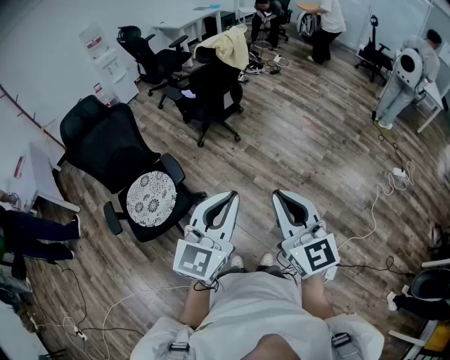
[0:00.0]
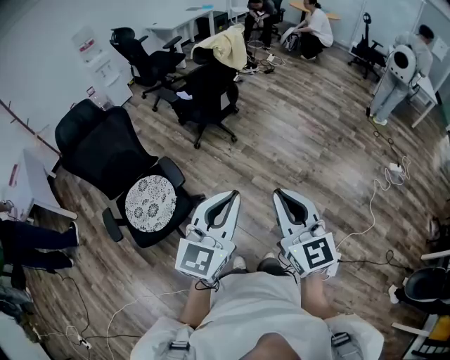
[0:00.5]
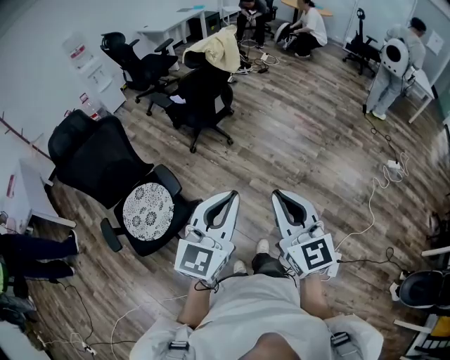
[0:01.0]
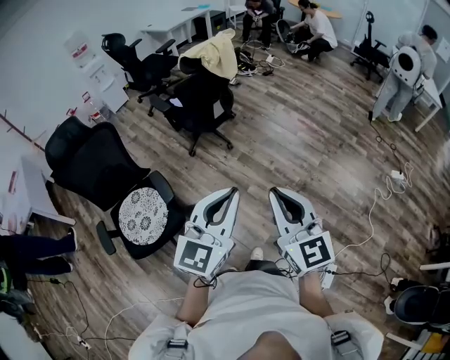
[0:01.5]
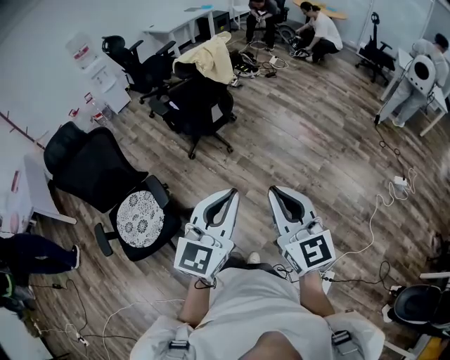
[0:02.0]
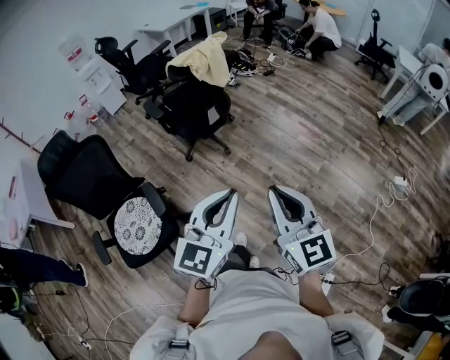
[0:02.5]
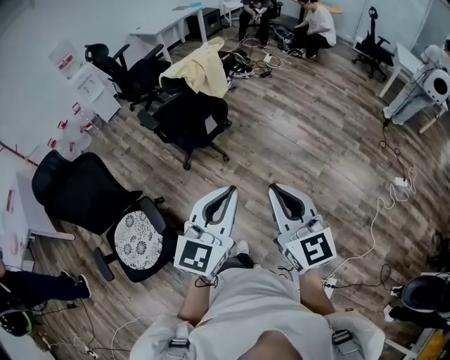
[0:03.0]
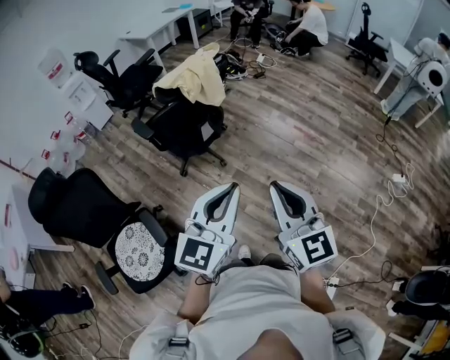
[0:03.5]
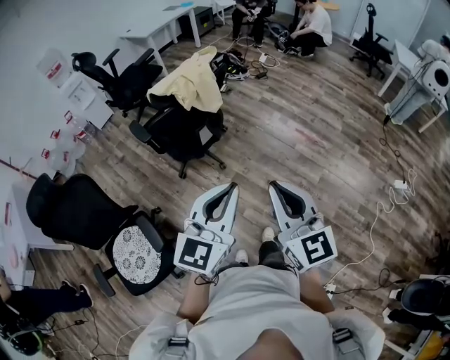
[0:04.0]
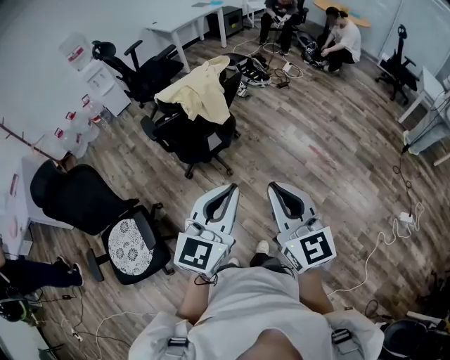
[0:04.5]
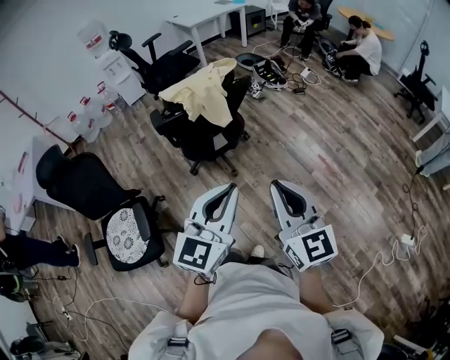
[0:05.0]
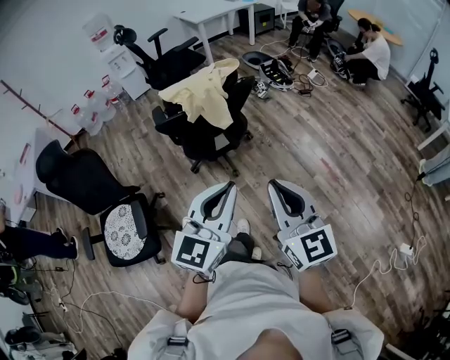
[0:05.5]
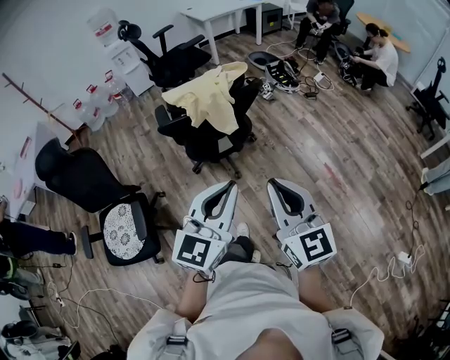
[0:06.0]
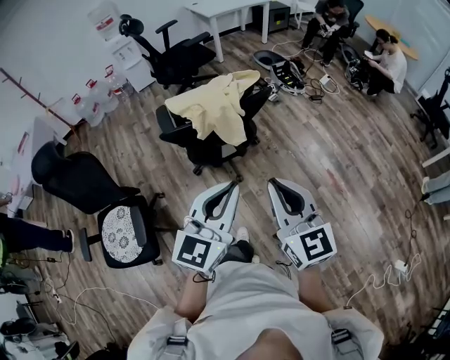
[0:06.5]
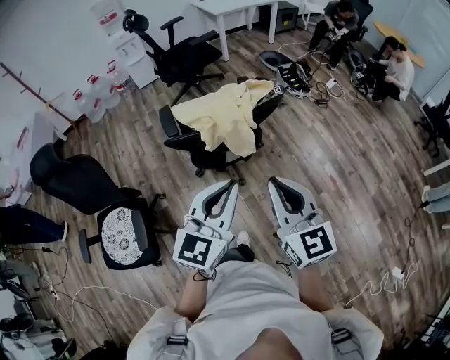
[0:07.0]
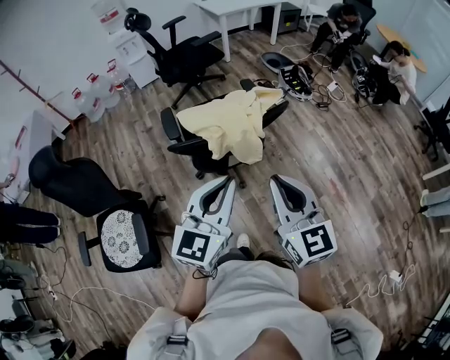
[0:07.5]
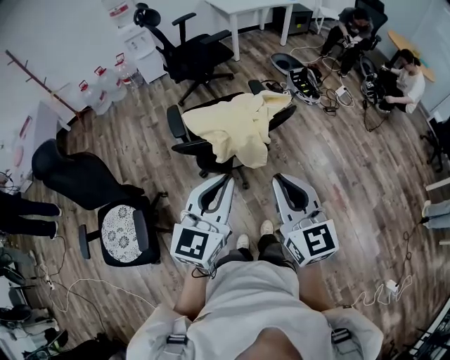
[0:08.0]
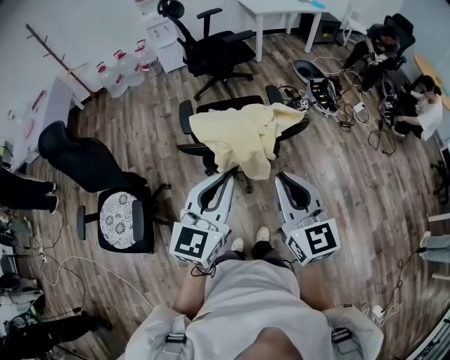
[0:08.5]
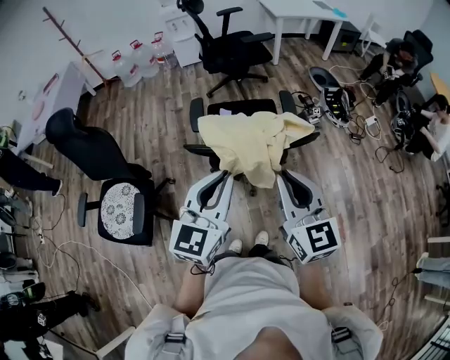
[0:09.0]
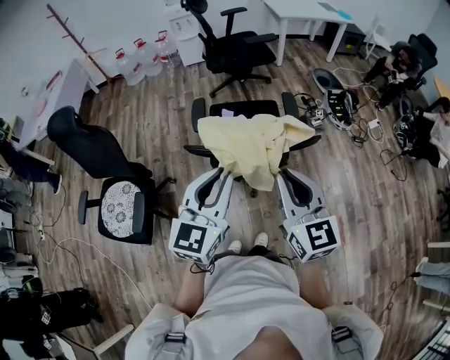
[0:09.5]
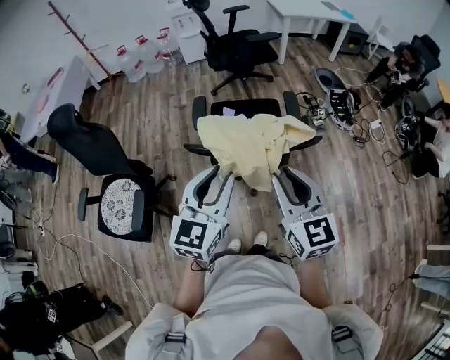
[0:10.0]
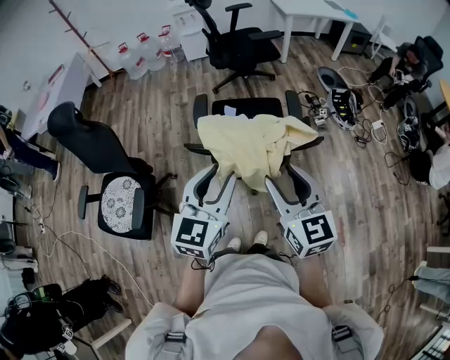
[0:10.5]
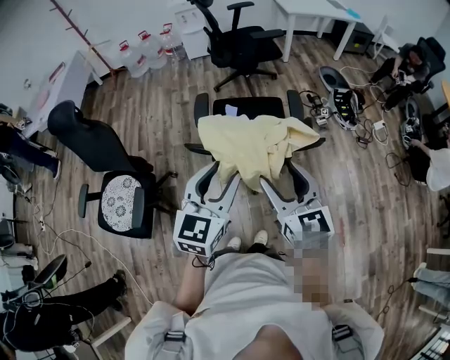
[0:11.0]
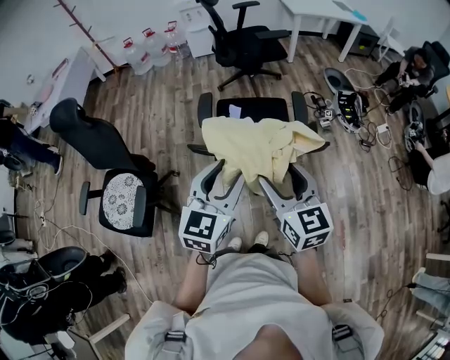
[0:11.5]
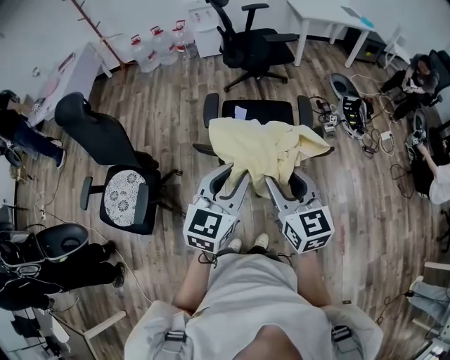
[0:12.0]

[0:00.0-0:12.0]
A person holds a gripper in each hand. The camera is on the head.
0.0 to 2.0 s: The left gripper is displaced forward and to the right by some 20 cm; the right gripper travels forward by some 15 cm.
2.0 to 4.0 s: Both grippers move forward, roughly 25 cm.
4.0 to 6.0 s: Both grippers move forward and to the right, approximately 15 cm. The left gripper swivels approximately 20 degrees; the right gripper rotates roughly 20 degrees.
6.0 to 8.0 s: The right gripper shifts roughly 20 cm forward. Meanwhile the left gripper goes some 20 cm forward and to the left.
8.0 to 10.0 s: Both grippers travel together forward, approximately 10 cm. The left gripper opens.
10.0 to 12.0 s: The right gripper moves approximately 5 cm, and opens, then closes once more.

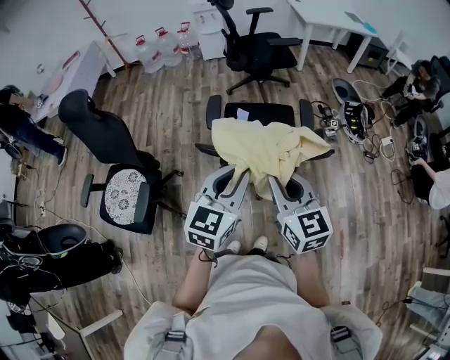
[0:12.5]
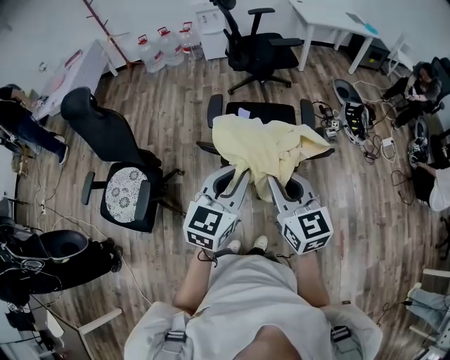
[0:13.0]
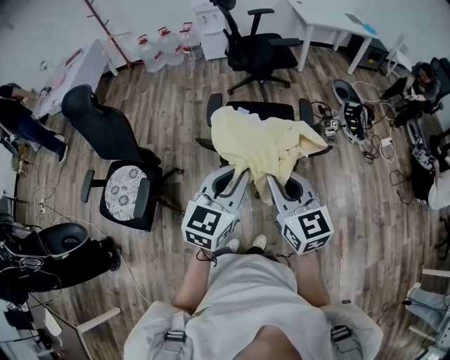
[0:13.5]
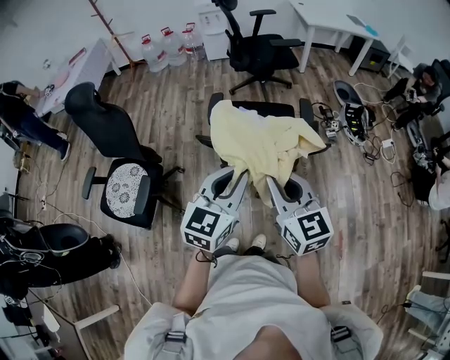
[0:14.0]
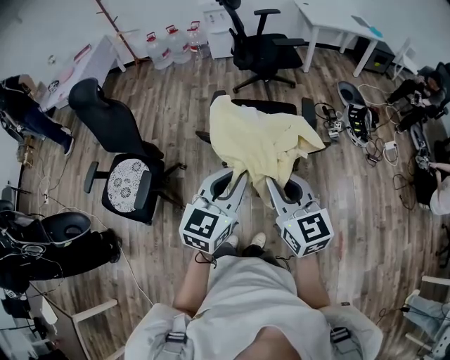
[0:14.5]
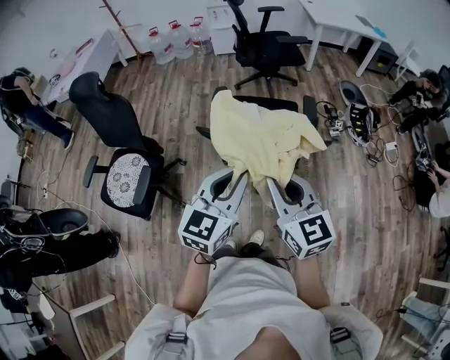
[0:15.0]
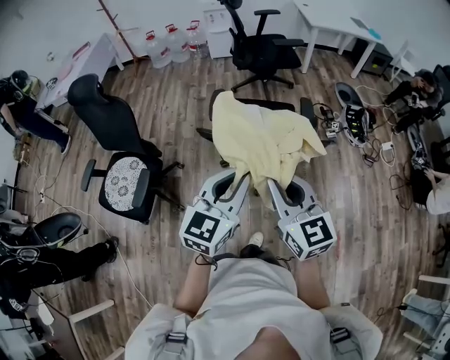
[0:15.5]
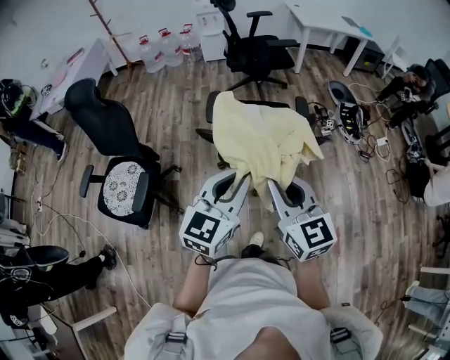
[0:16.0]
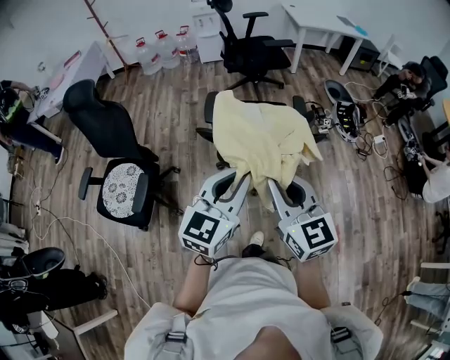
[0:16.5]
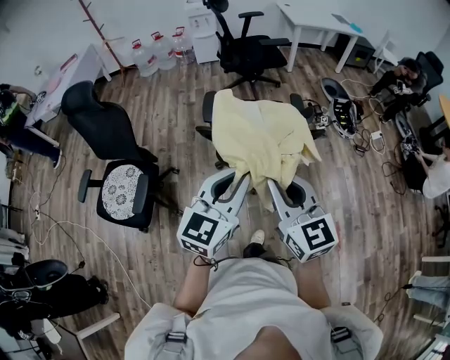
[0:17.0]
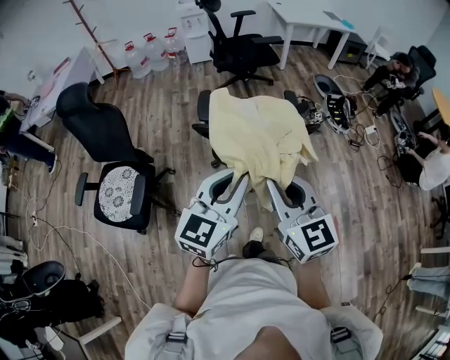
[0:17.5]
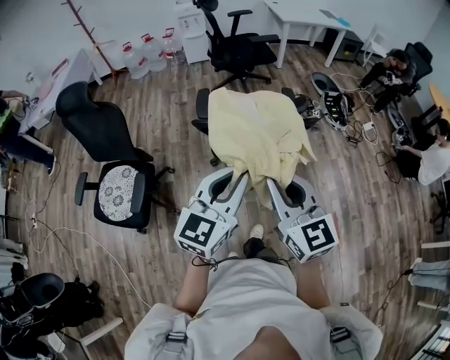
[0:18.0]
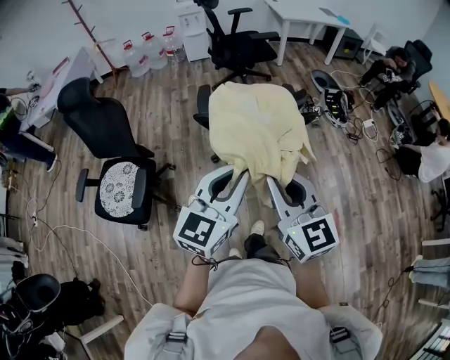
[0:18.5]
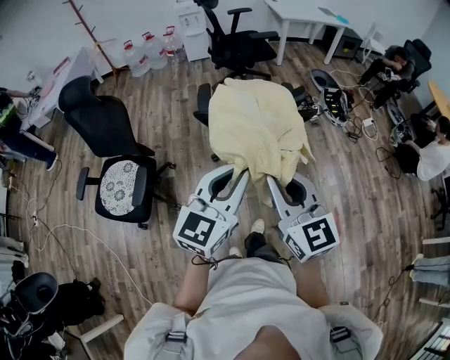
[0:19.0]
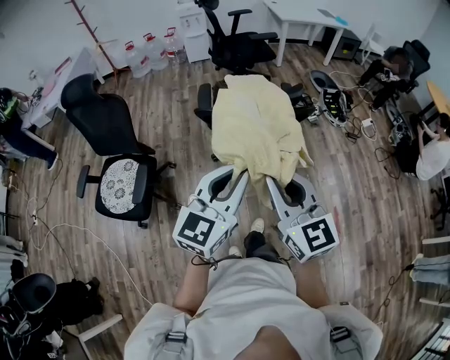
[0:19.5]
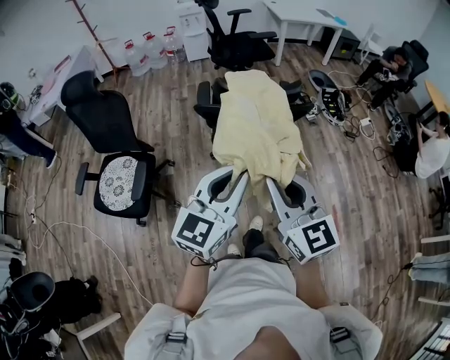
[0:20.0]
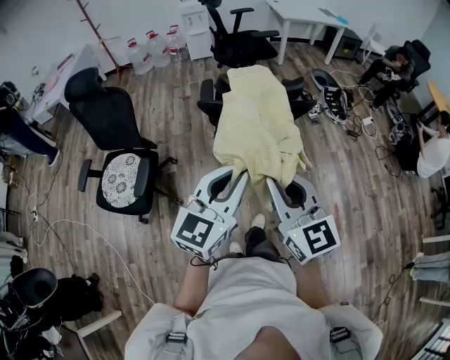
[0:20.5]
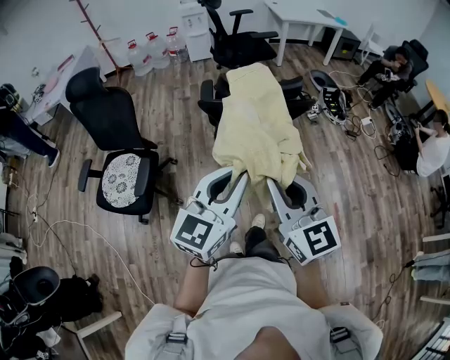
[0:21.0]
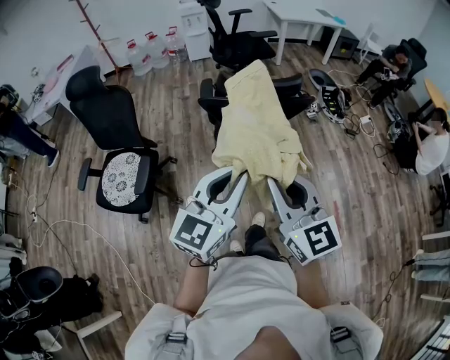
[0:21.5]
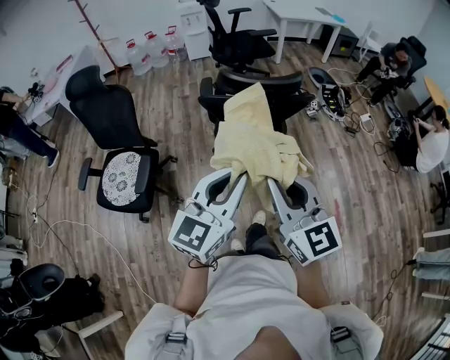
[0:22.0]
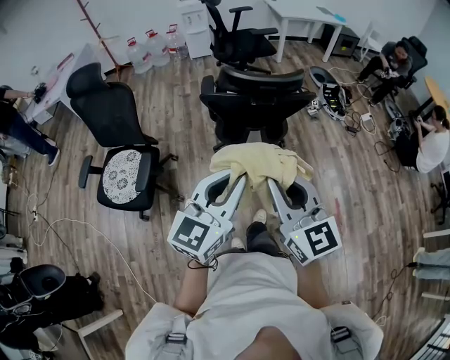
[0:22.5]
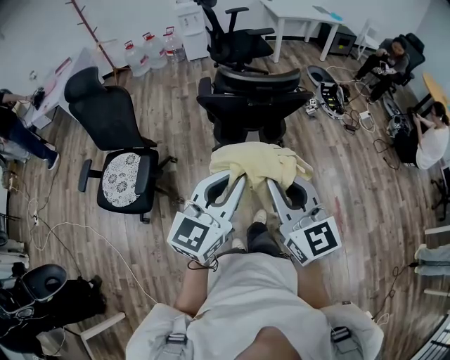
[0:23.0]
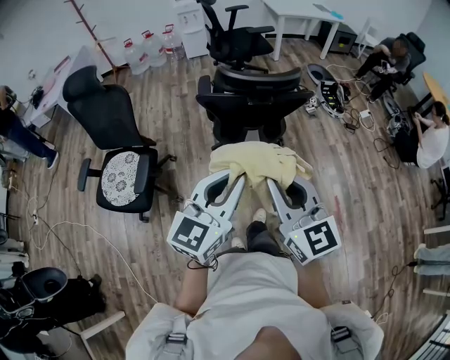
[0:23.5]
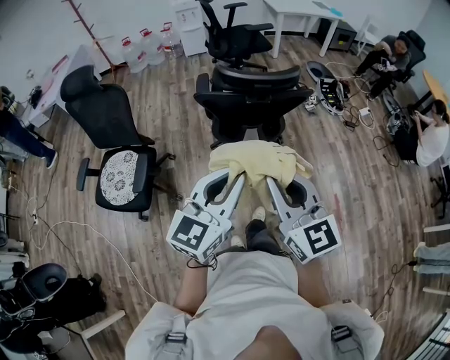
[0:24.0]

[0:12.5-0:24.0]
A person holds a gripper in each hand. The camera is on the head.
12.5 to 14.5 s: The grippers both shift backward by about 5 cm.
14.5 to 16.5 s: The right gripper ends up approximately 5 cm from where it was. Meanwhile the left gripper moves approximately 5 cm.
16.5 to 18.5 s: Both grippers travel together backward, approximately 5 cm.
18.5 to 20.0 s: The grippers both shift backward by approximately 5 cm.
20.0 to 22.0 s: Both grippers move backward, roughly 5 cm.
22.0 to 24.0 s: The grippers move only a little.

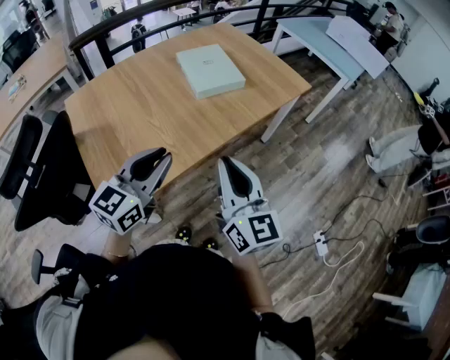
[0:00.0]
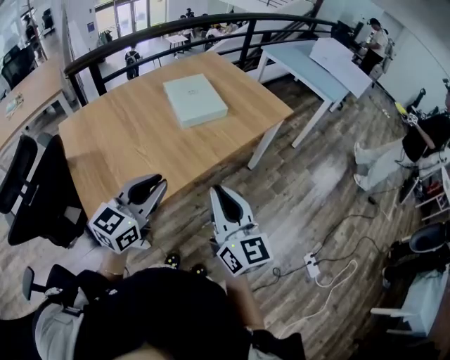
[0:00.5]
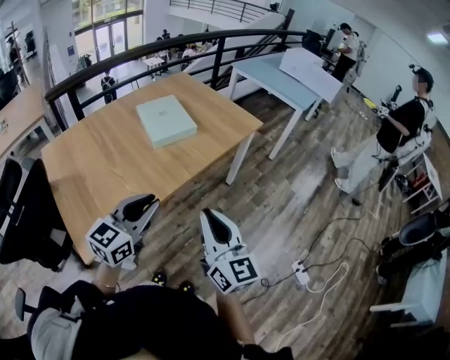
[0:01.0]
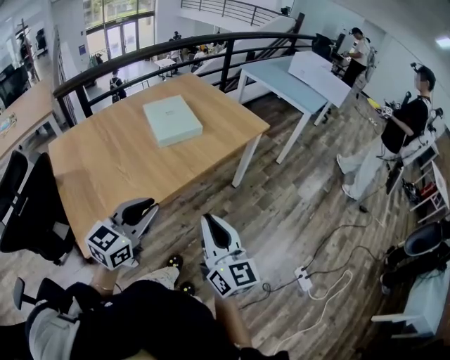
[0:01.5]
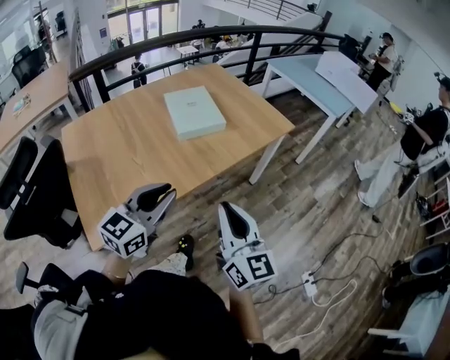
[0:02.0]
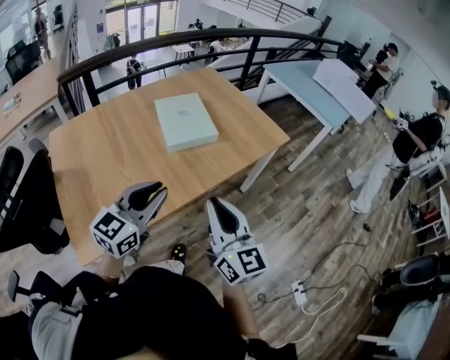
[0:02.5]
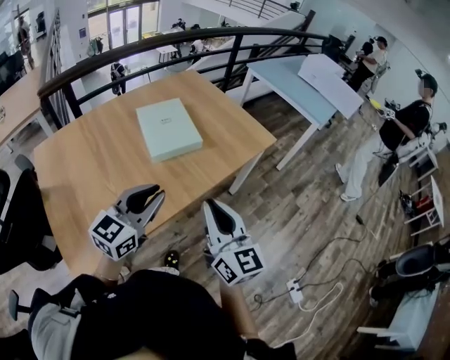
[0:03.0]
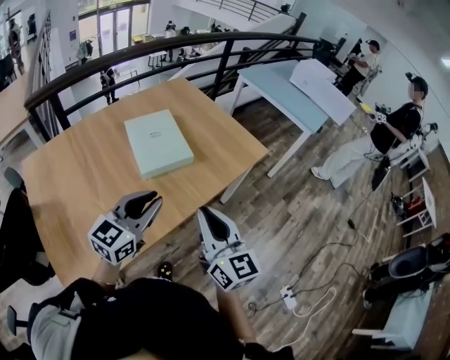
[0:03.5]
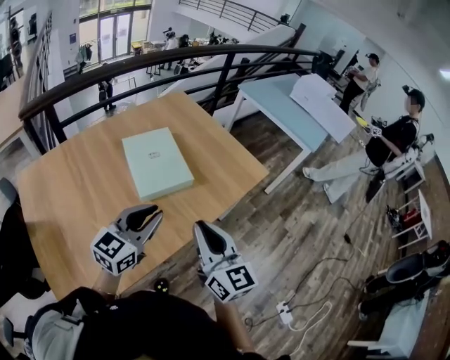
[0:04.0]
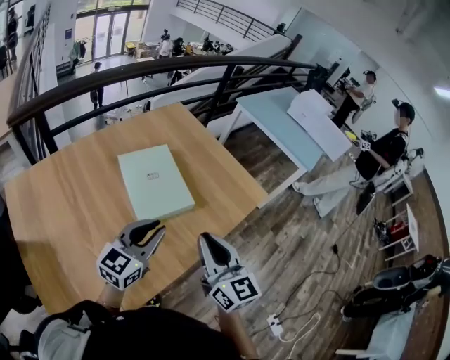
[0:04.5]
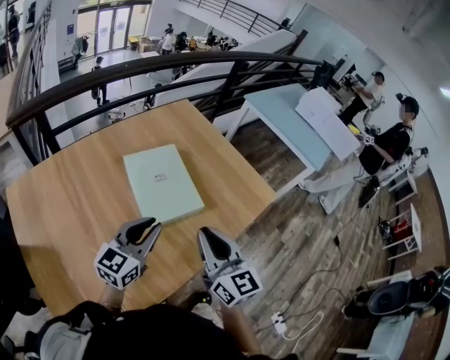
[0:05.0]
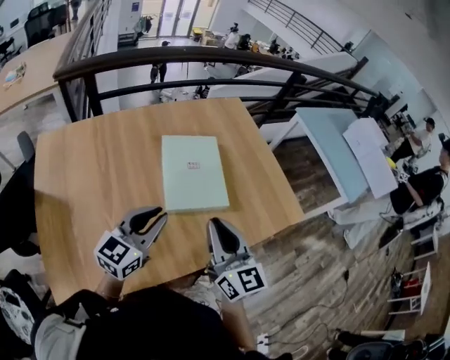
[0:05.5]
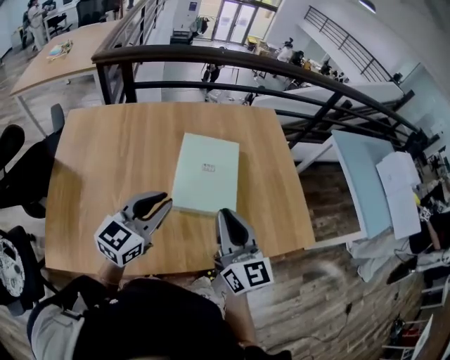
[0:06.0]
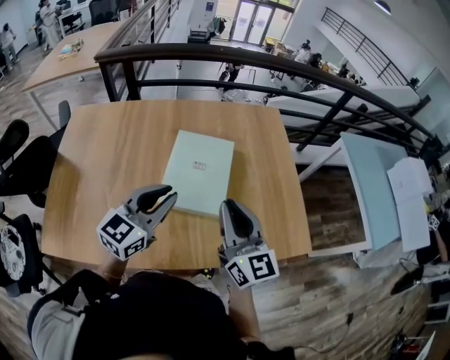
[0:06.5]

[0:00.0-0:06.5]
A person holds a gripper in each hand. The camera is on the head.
0.0 to 2.0 s: The grippers both shift to the right by about 10 cm.
2.0 to 4.5 s: Both grippers travel together forward, about 30 cm.
4.5 to 6.5 s: The left gripper moves roughly 10 cm, and rotates approximately 30 degrees; the right gripper moves approximately 20 cm, and swivels some 30 degrees.
